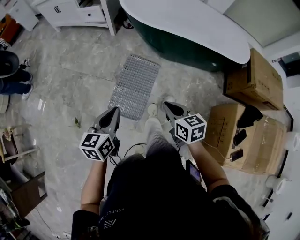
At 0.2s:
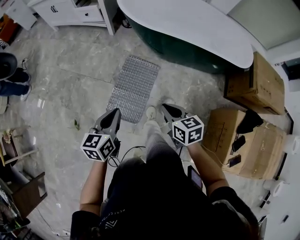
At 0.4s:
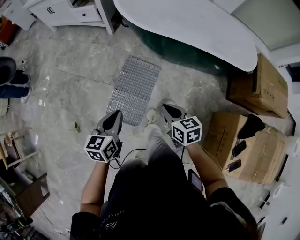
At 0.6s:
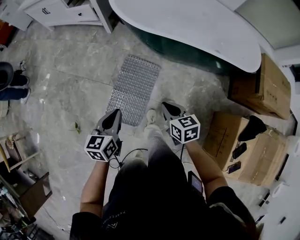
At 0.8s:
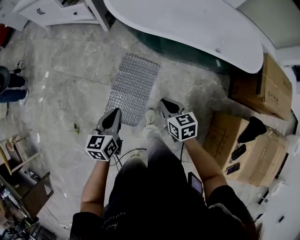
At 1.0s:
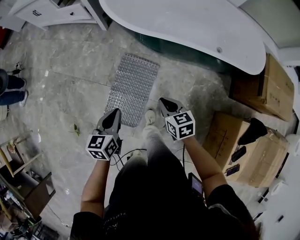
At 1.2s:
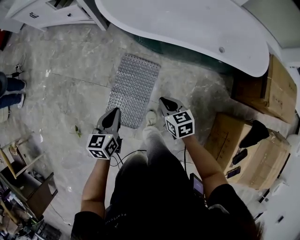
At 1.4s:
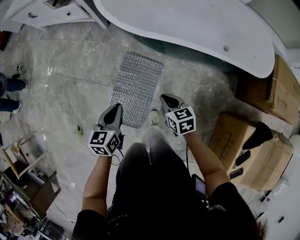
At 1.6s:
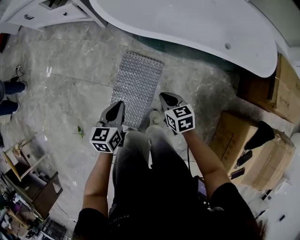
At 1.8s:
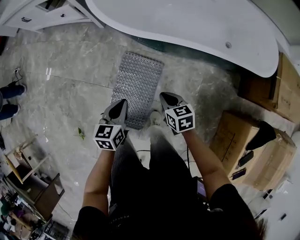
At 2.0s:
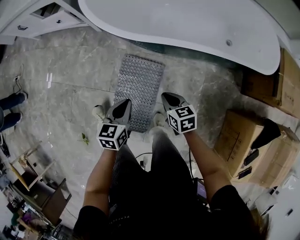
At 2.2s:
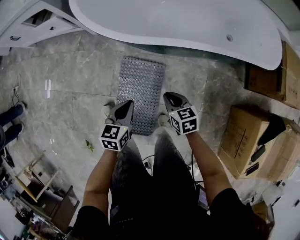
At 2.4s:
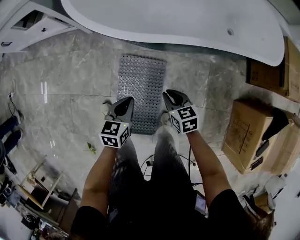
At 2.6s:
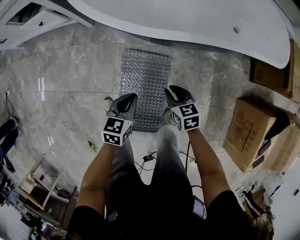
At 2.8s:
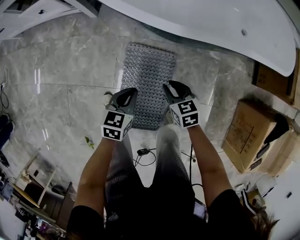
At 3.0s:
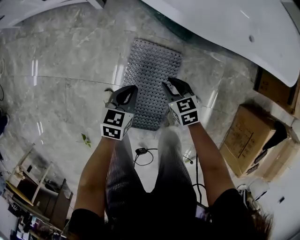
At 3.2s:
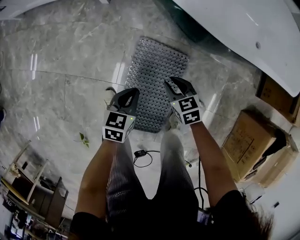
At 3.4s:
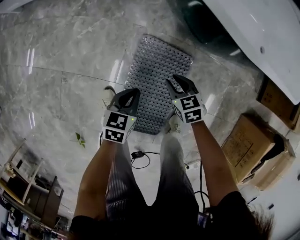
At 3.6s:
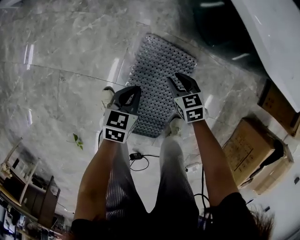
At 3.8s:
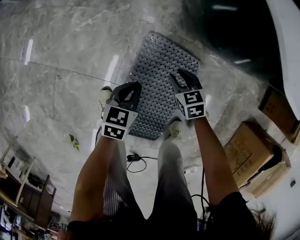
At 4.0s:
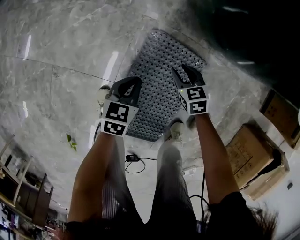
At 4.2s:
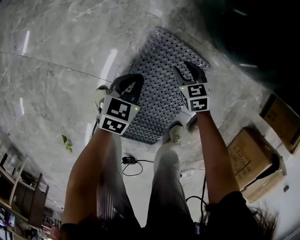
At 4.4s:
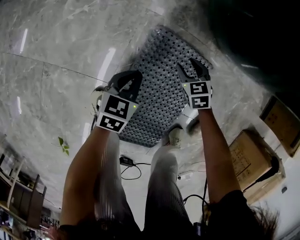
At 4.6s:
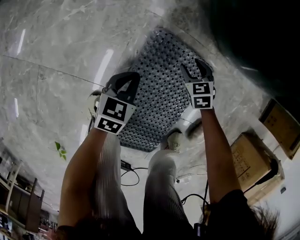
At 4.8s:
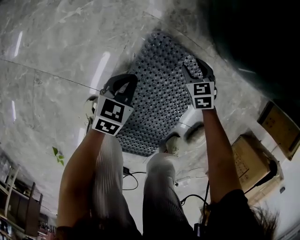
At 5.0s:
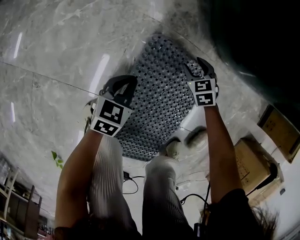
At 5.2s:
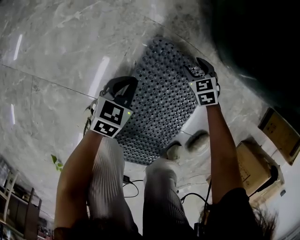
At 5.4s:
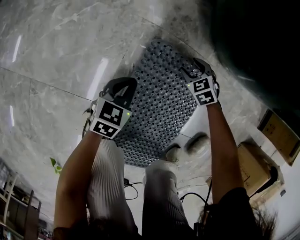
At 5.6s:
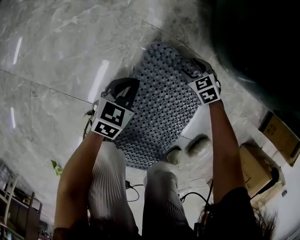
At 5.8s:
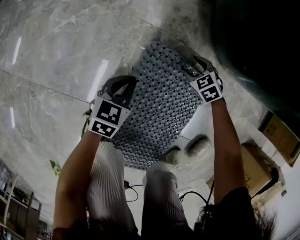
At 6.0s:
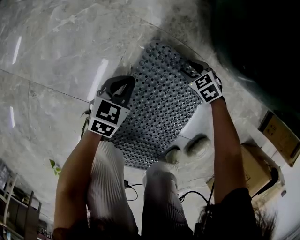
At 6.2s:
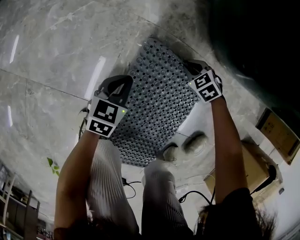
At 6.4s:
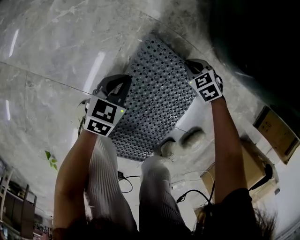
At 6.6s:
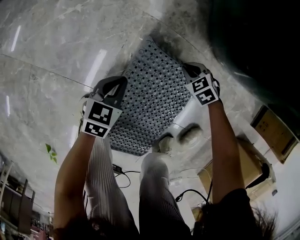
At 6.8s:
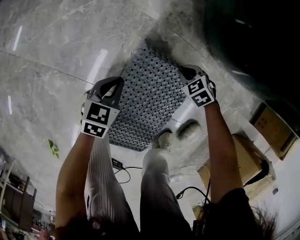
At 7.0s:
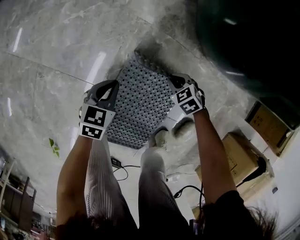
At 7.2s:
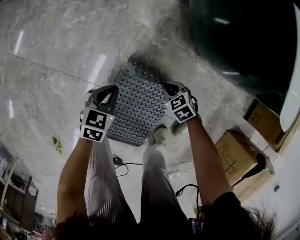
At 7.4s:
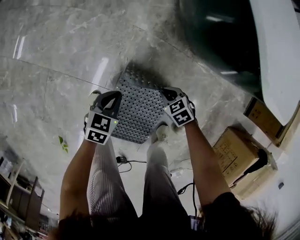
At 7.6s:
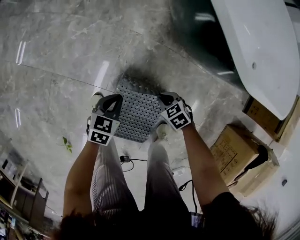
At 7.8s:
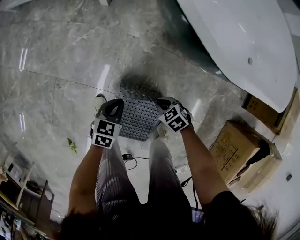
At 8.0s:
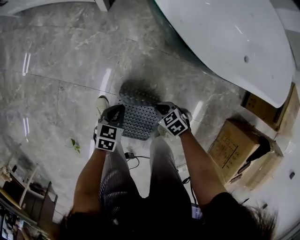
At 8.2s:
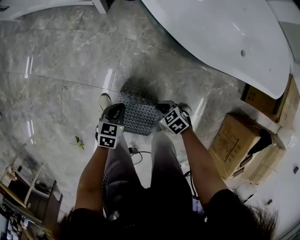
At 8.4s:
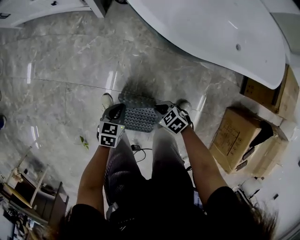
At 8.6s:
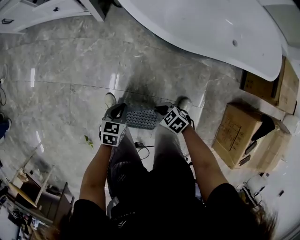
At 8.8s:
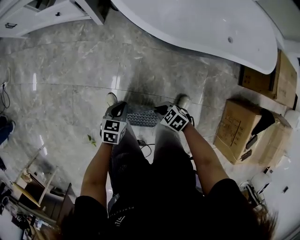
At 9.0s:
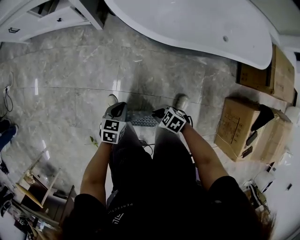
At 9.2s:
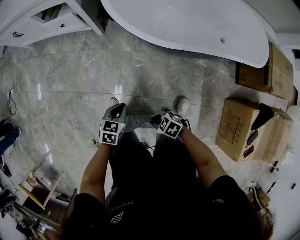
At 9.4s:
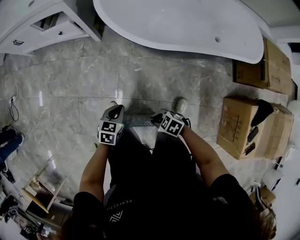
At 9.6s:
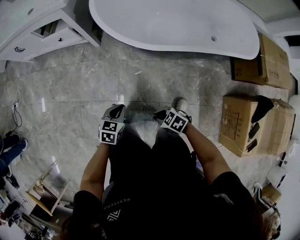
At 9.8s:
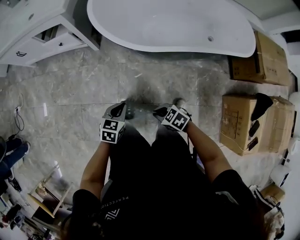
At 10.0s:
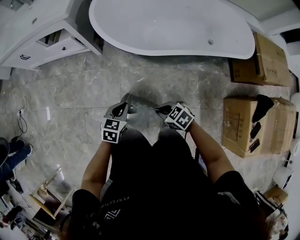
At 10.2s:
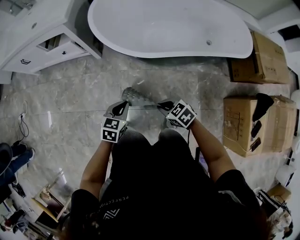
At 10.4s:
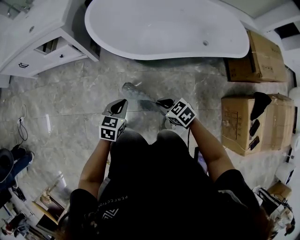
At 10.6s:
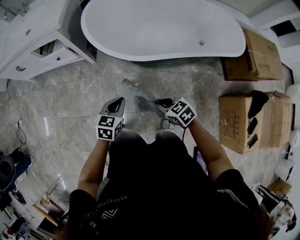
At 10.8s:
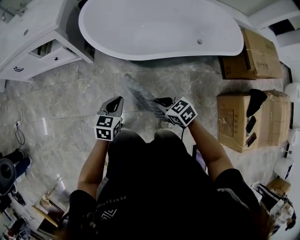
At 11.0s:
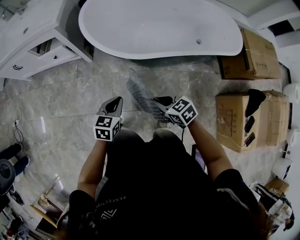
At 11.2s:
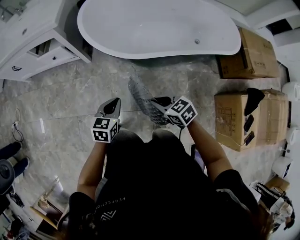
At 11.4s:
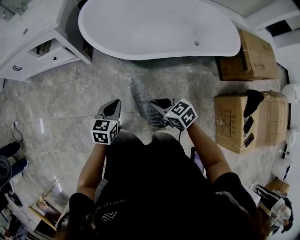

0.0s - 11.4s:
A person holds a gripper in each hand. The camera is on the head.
0.0s - 1.4s: The grippers both shift forward and downward by approximately 30 cm.
1.4s - 2.8s: The left gripper travels downward and forward by about 25 cm, and swivels approximately 30 degrees. The right gripper shifts roughly 20 cm downward, forward and to the left.
2.8s - 4.2s: Both grippers move downward, roughly 25 cm. The right gripper changes its angle by about 20 degrees.
4.2s - 5.6s: The right gripper goes some 15 cm downward and forward, and turns by some 20 degrees. Meanwhile the left gripper heads downward, covering roughly 10 cm.
5.6s - 7.2s: Both grippers move upward and backward, approximately 15 cm. The right gripper closes its fingers.
7.2s - 8.6s: Both grippers travel together upward, roughly 25 cm.
8.6s - 10.0s: Both grippers travel together upward, some 20 cm.
10.0s - 11.4s: The right gripper travels upward by roughly 10 cm. The left gripper is displaced upward by some 5 cm.

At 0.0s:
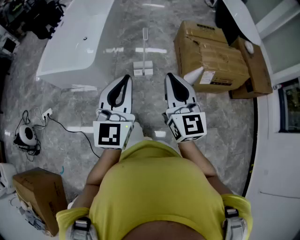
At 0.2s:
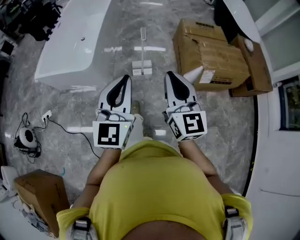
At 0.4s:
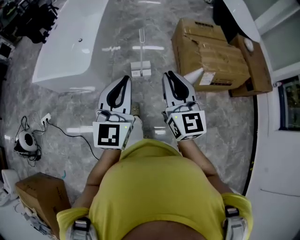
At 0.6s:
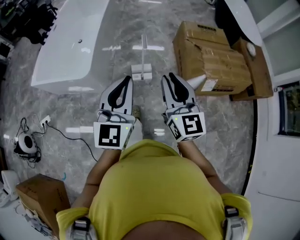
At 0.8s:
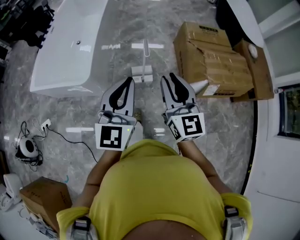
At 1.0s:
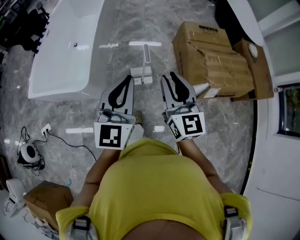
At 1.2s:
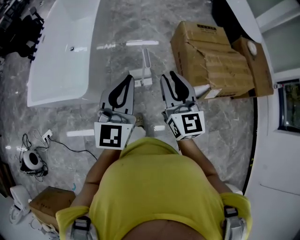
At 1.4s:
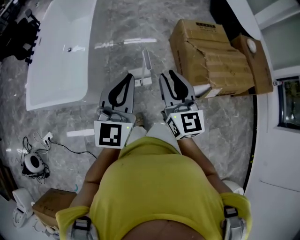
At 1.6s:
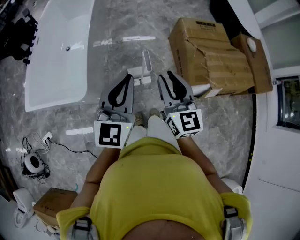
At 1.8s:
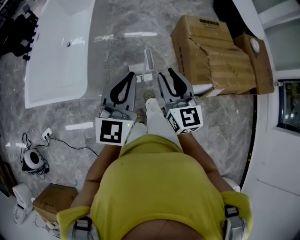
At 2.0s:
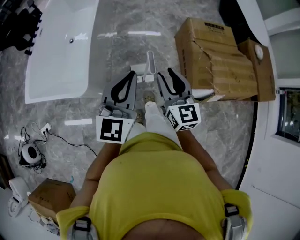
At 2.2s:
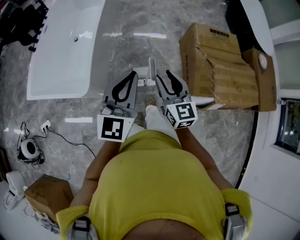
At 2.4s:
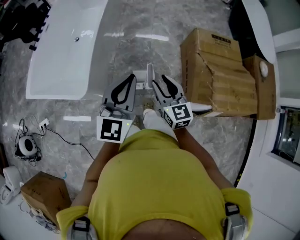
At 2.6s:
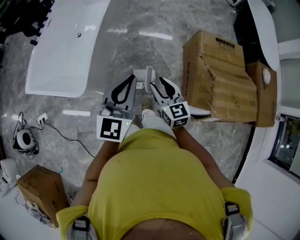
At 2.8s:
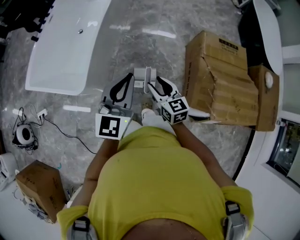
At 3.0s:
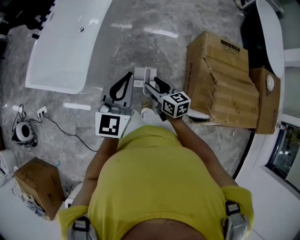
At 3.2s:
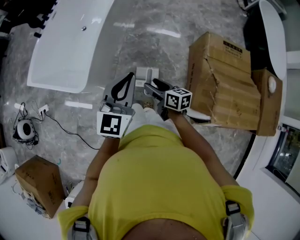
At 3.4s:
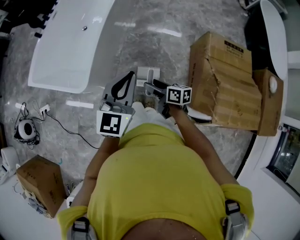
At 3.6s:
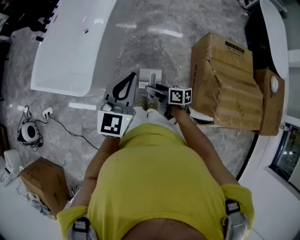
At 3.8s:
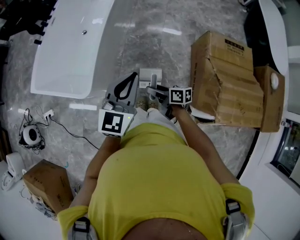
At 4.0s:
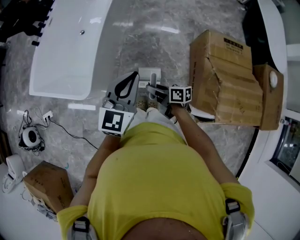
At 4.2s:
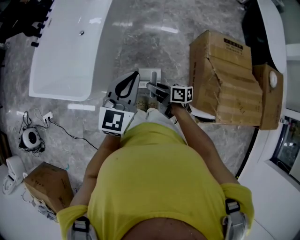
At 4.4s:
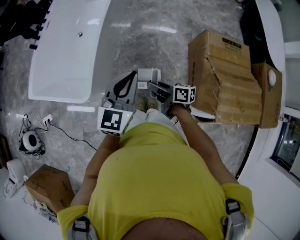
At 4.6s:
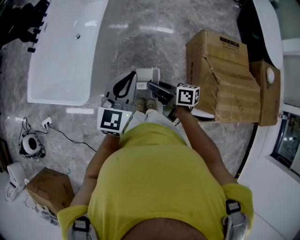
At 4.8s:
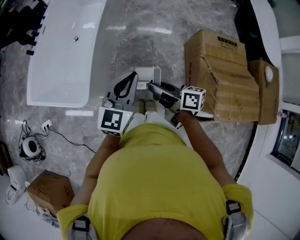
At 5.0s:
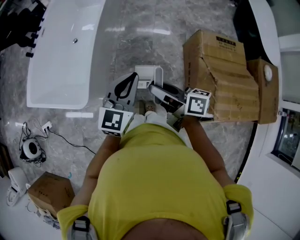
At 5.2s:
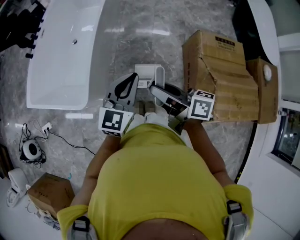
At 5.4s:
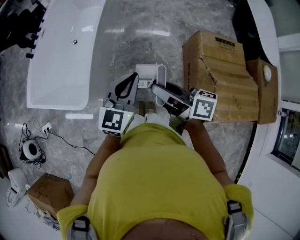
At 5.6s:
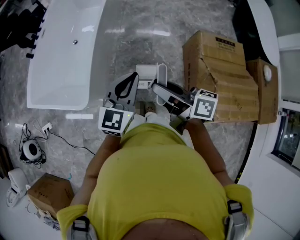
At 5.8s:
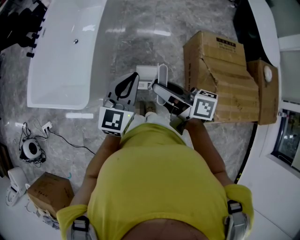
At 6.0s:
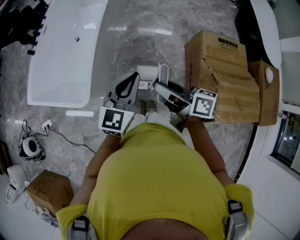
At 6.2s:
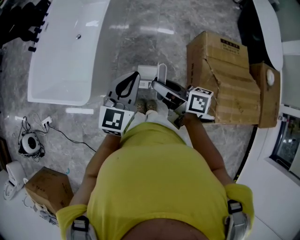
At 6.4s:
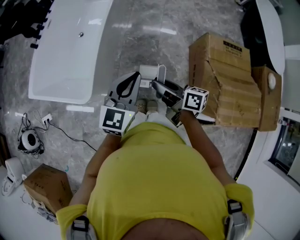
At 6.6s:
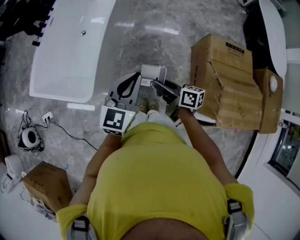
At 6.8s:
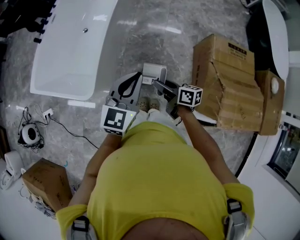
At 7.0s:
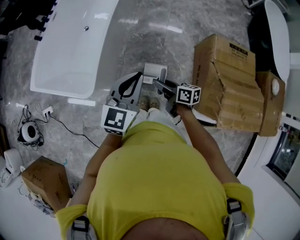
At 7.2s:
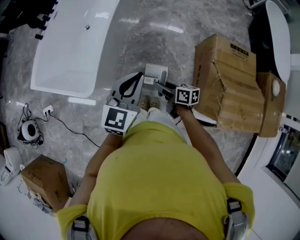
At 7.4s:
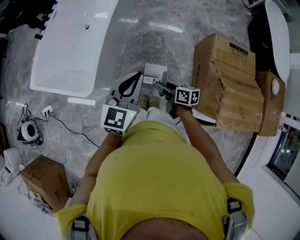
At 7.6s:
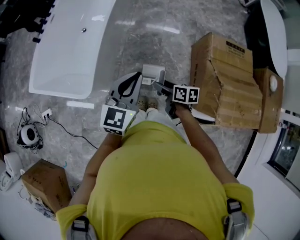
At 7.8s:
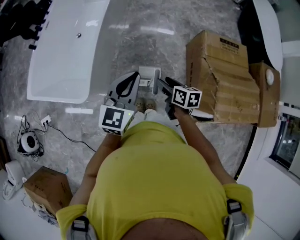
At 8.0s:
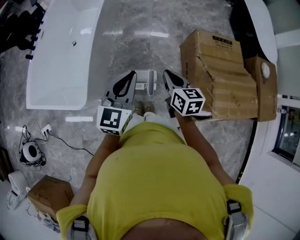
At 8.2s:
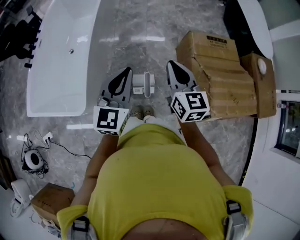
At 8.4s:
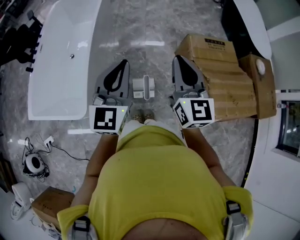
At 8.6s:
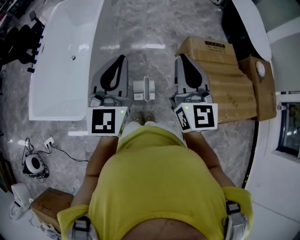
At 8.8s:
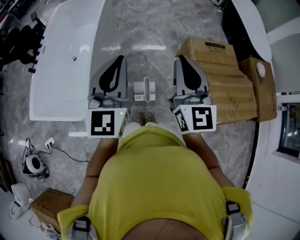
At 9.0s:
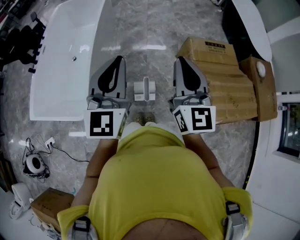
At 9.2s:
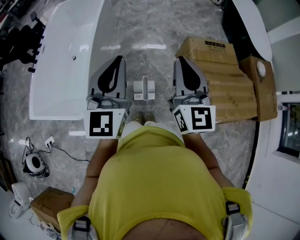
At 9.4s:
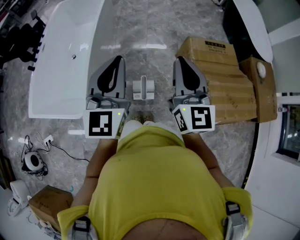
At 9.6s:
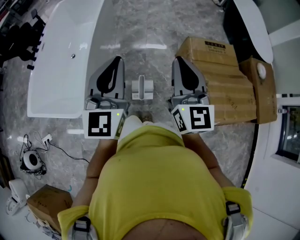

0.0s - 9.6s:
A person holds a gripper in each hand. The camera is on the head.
0.0s - 1.6s: The grippers both shift forward by approximately 30 cm. The right gripper opens its fingers.
1.6s - 3.2s: The left gripper shifts by about 15 cm. The right gripper travels downward by some 25 cm, turns by some 60 degrees, and opens.
3.2s - 4.8s: The right gripper moves upward, about 15 cm, rotates approximately 20 degrees, and closes its fingers; the left gripper shifts approximately 5 cm forward.
4.8s - 6.4s: The right gripper goes upward and returns, roughly 10 cm each way.
6.4s - 8.0s: The right gripper is displaced to the right by about 10 cm, reaches some 15 cm downward, then returns, changes its angle by some 50 degrees, and closes its fingers.
8.0s - 9.6s: The right gripper heads upward, covering about 20 cm, and tilts its fingers about 30 degrees upward. The left gripper goes some 15 cm upward.

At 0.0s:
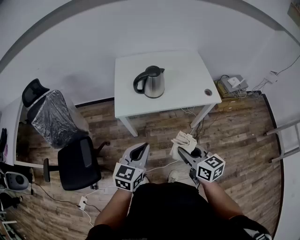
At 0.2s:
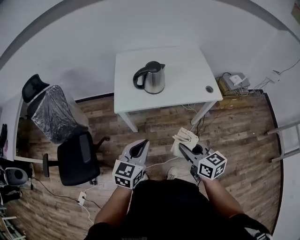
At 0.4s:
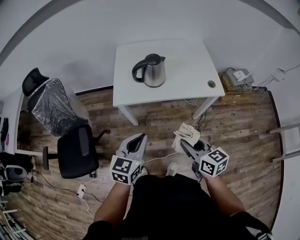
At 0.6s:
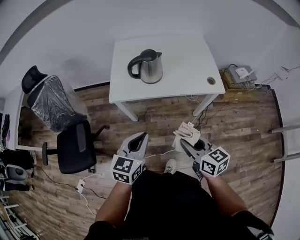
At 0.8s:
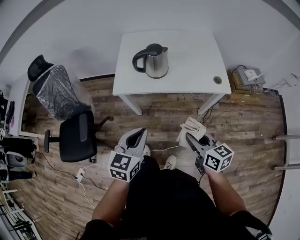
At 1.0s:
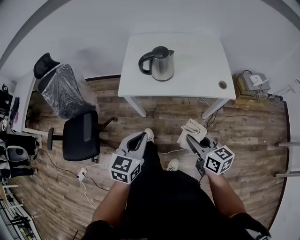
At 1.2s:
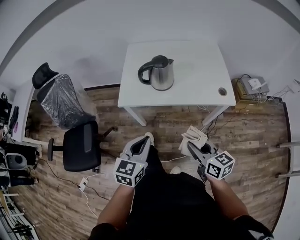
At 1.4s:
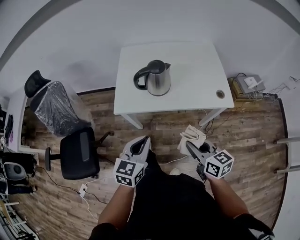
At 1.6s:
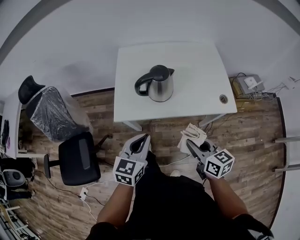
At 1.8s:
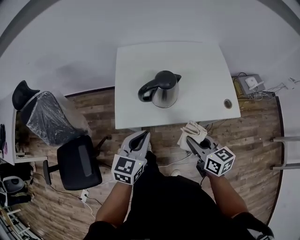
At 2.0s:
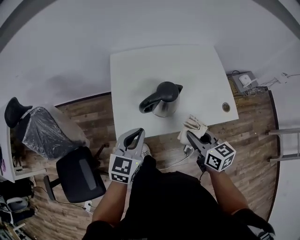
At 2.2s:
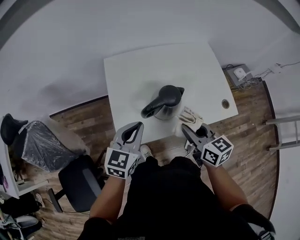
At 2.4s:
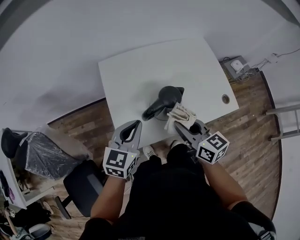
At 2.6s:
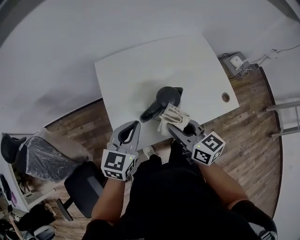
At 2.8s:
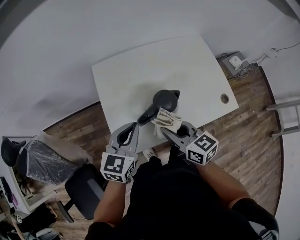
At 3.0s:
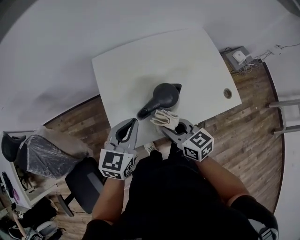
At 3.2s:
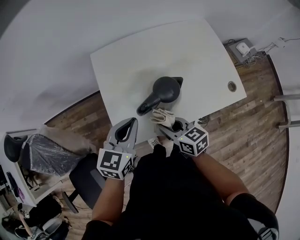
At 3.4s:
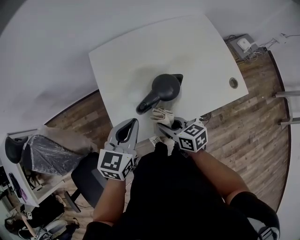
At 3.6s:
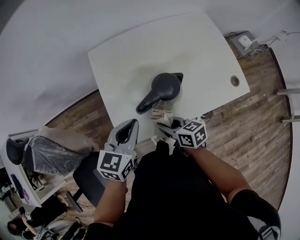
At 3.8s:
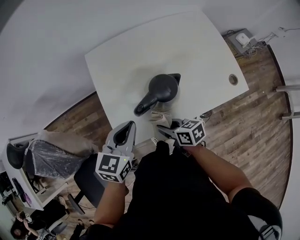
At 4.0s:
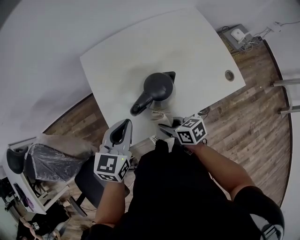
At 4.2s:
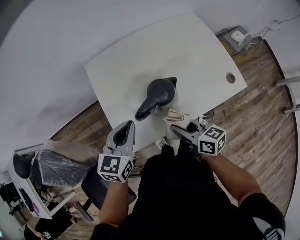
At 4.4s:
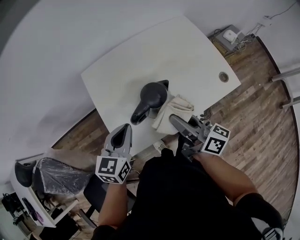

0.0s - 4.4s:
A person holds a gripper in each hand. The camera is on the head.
0.0s - 1.4s: The left gripper shifts about 10 cm forward, while the right gripper shifts roughly 10 cm forward and to the right.
1.4s - 3.0s: The left gripper travels forward by about 30 cm; the right gripper travels forward and to the left by about 30 cm.
3.0s - 4.4s: The right gripper is displaced to the right by approximately 5 cm, goes downward and returns, roughly 10 cm each way, and swivels about 40 degrees.
